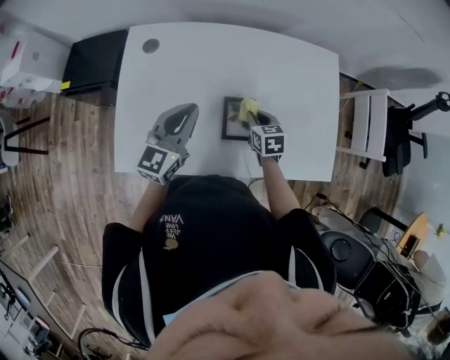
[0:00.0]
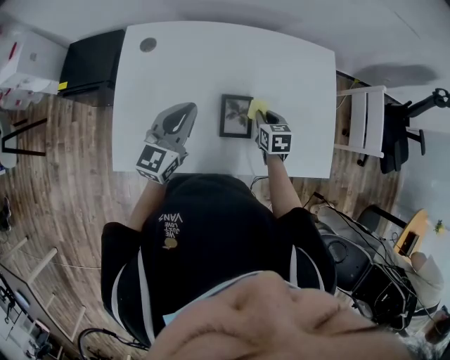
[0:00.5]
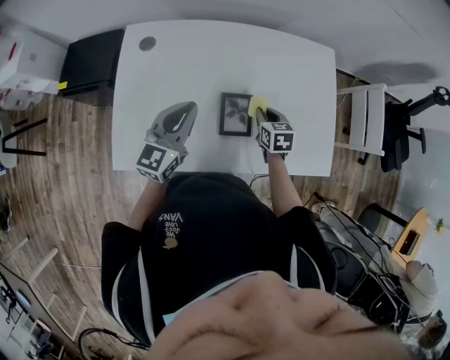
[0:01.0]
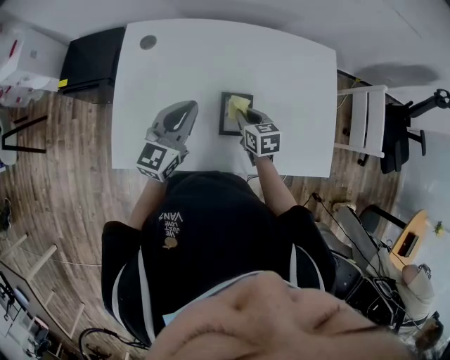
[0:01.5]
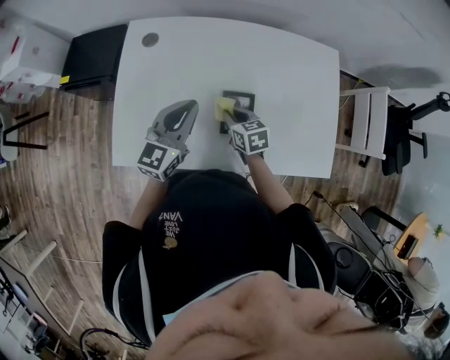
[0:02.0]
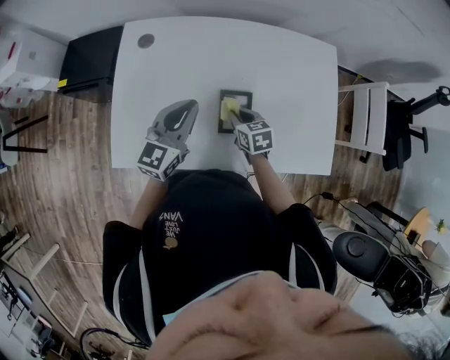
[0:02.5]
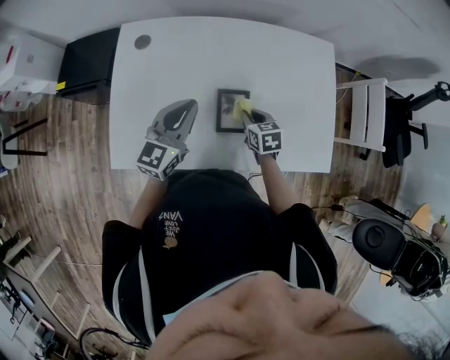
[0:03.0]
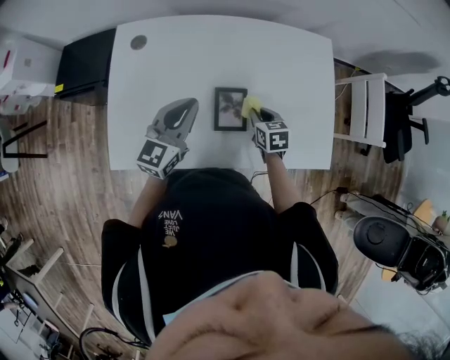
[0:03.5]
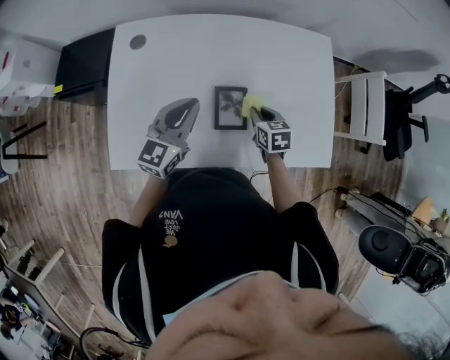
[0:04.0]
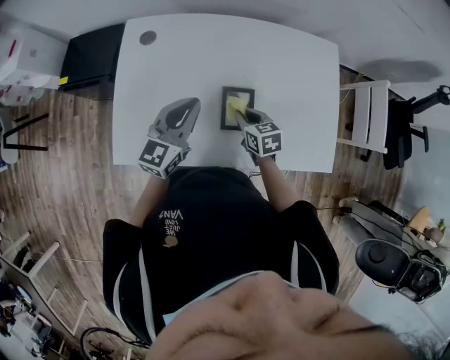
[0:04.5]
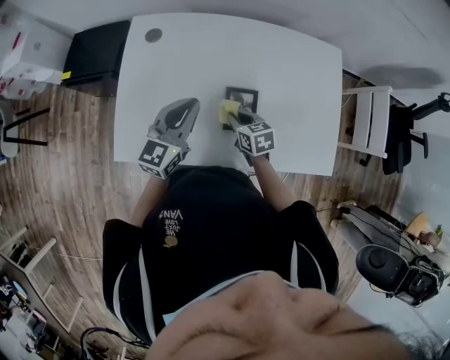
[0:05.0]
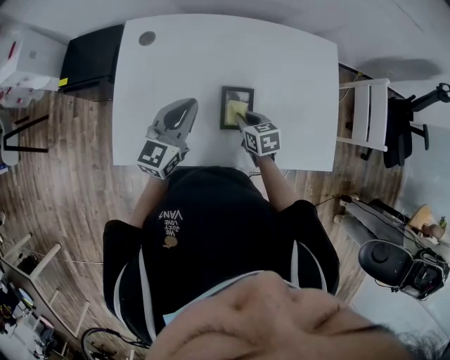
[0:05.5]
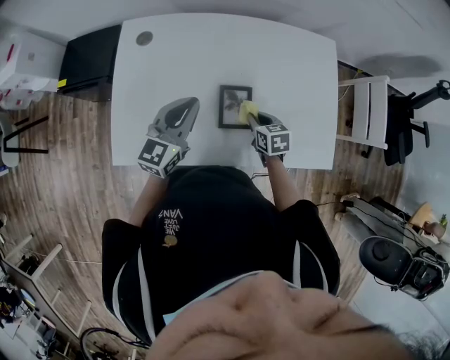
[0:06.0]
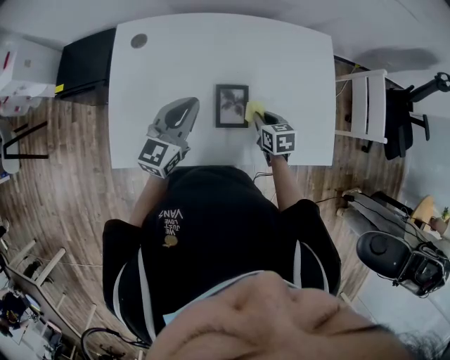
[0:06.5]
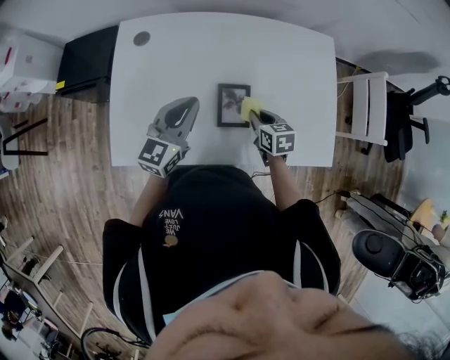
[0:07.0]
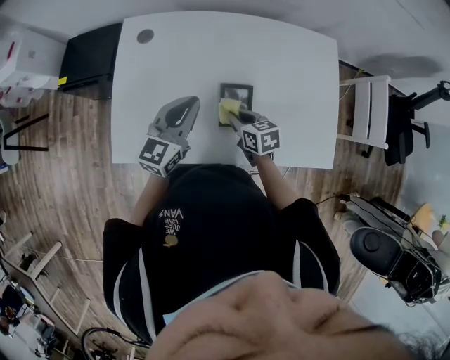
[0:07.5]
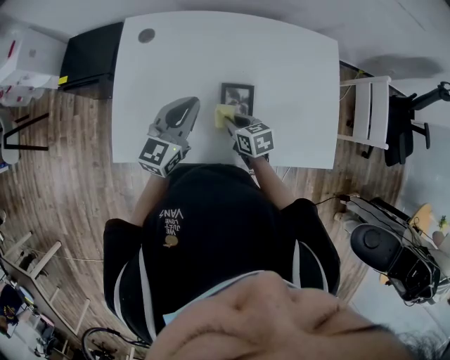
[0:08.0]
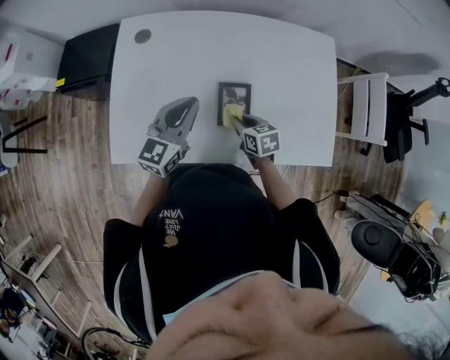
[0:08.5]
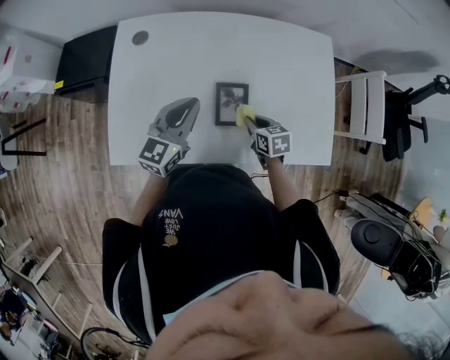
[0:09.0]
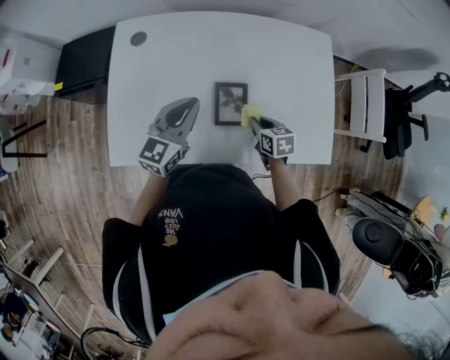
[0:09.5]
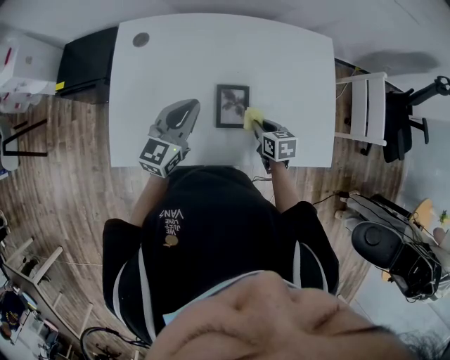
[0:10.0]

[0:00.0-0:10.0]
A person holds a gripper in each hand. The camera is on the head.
0:00.0 to 0:02.0: The right gripper heads to the left, covering approximately 10 cm.
0:02.0 to 0:04.0: The right gripper moves to the right, about 10 cm.
0:04.0 to 0:06.0: The right gripper reaches about 10 cm to the left, then returns.
0:06.0 to 0:08.0: The right gripper is displaced to the left by approximately 10 cm.
0:08.0 to 0:10.0: The right gripper travels to the right by about 10 cm.

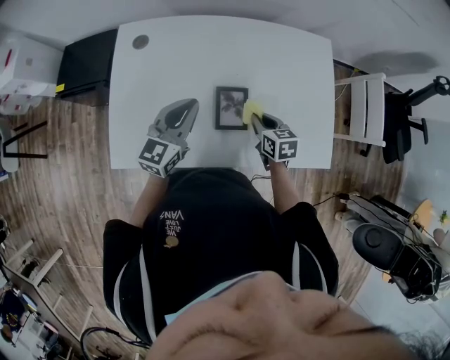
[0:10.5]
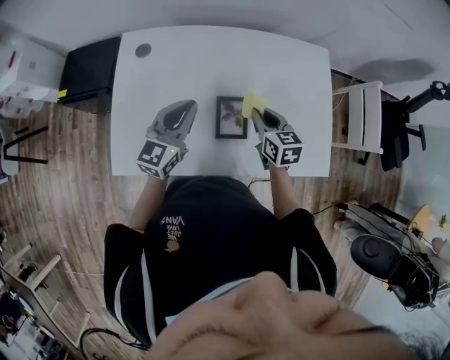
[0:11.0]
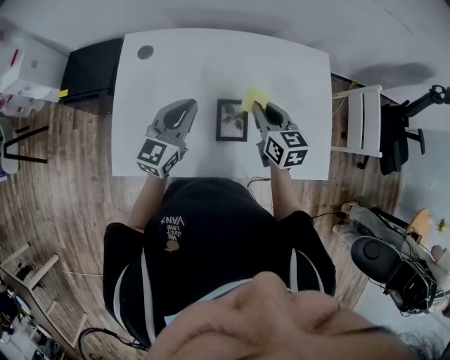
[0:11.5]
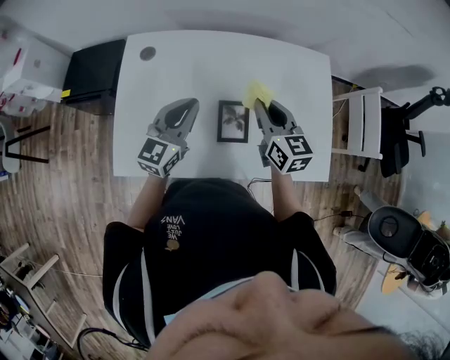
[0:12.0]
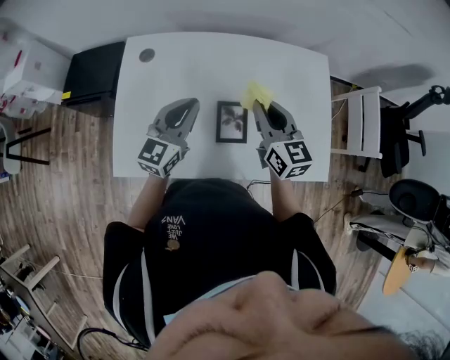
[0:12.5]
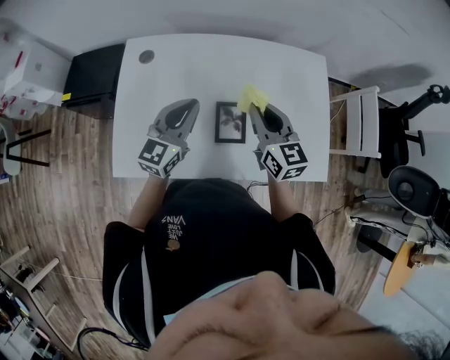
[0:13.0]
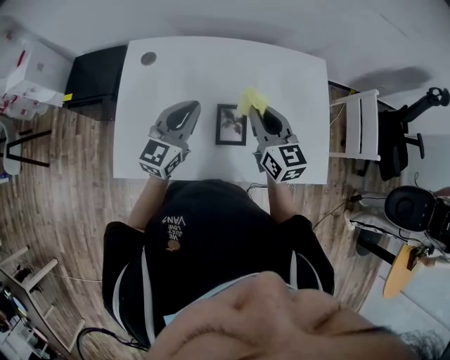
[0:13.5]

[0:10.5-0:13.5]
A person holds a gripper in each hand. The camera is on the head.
0:10.5 to 0:12.0: The right gripper shifts about 15 cm upward, and changes its angle by roughly 30 degrees.
0:12.0 to 0:13.5: The grippers make only small movements.

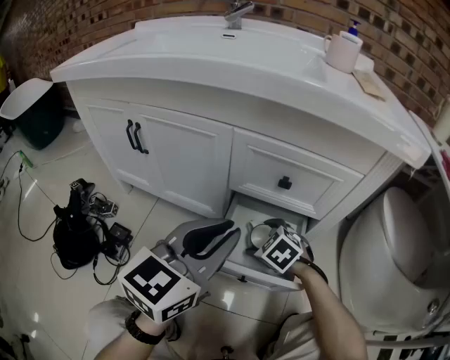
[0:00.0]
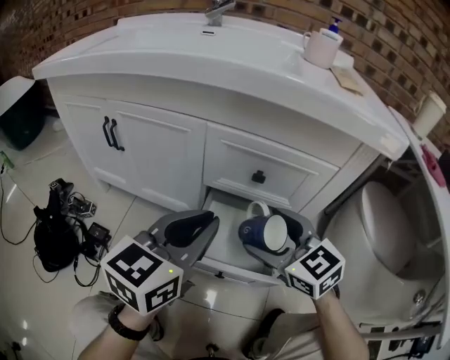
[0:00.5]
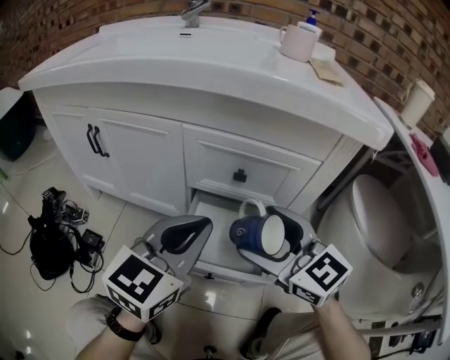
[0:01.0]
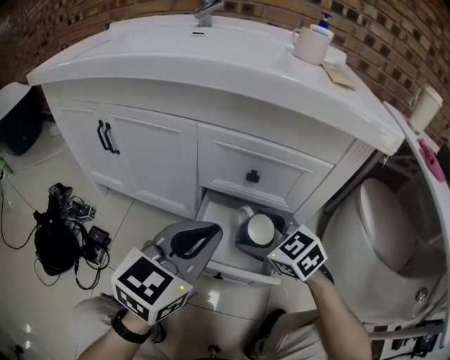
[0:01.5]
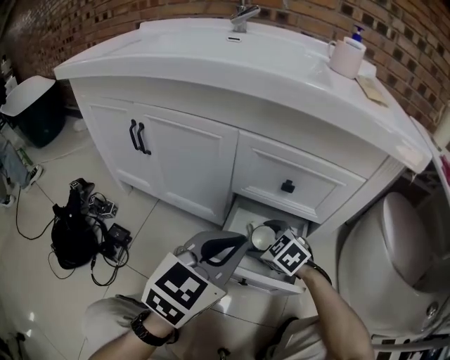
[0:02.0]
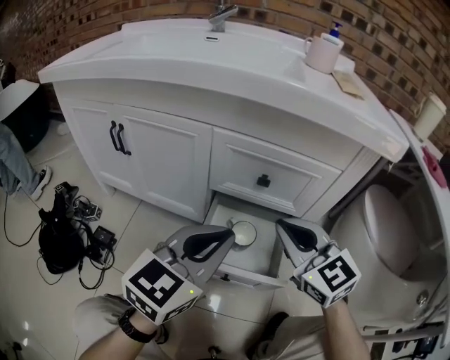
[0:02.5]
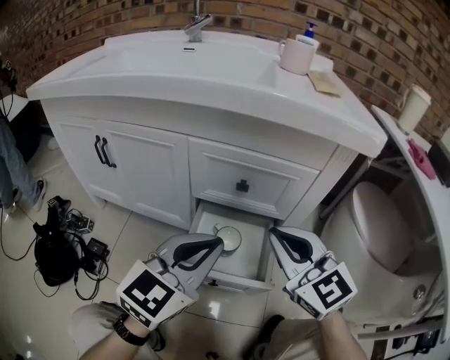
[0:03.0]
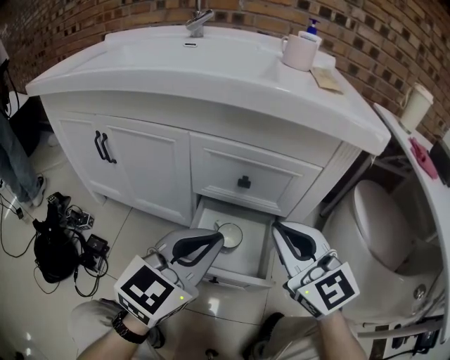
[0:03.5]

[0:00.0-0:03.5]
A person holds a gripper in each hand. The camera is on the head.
0:00.0 to 0:02.0: The right gripper moves roughly 20 cm upward and comes back.
0:02.0 to 0:03.5: The right gripper heads upward, covering roughly 25 cm, points its fingers some 50 degrees further upward, and closes its fingers.

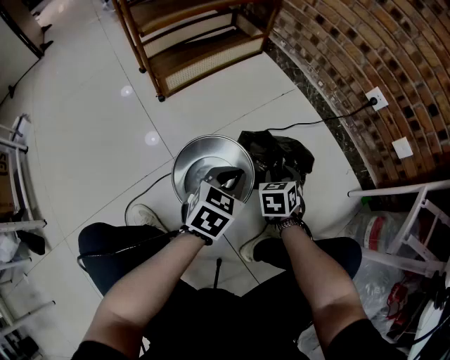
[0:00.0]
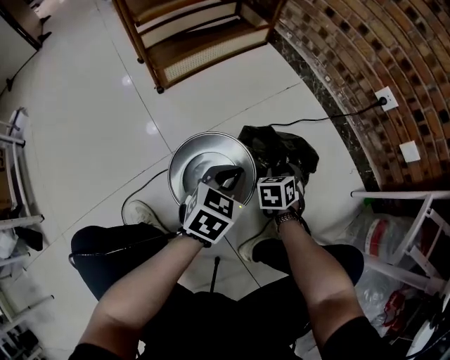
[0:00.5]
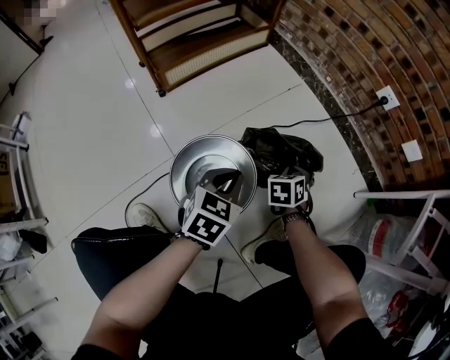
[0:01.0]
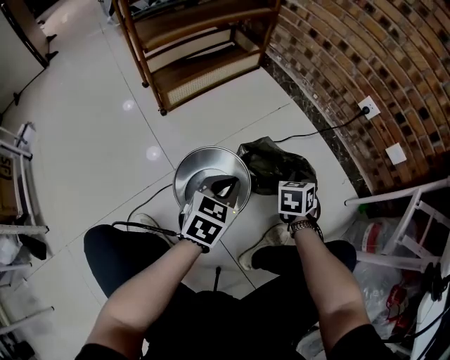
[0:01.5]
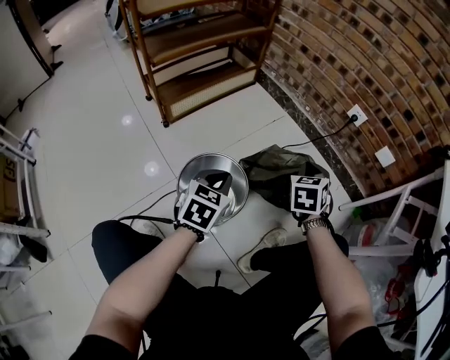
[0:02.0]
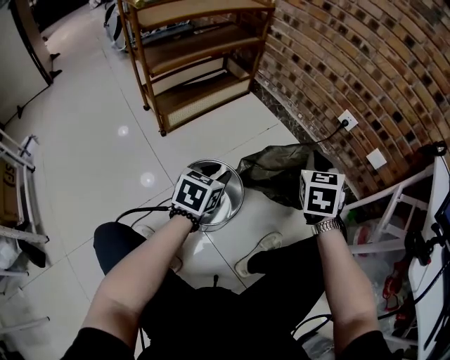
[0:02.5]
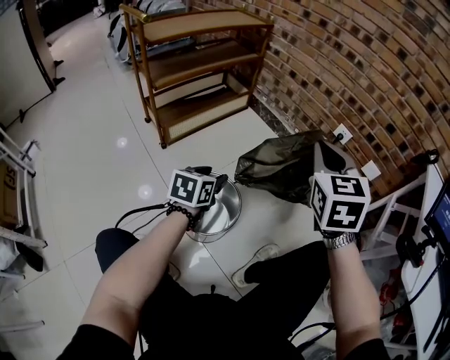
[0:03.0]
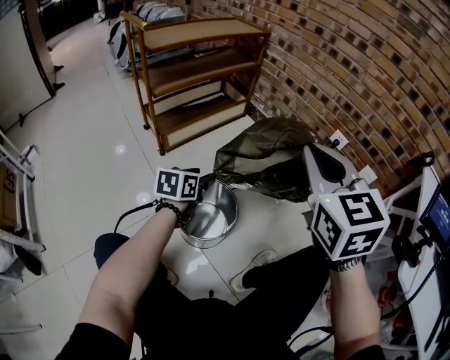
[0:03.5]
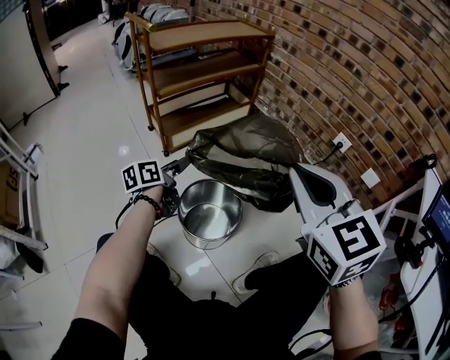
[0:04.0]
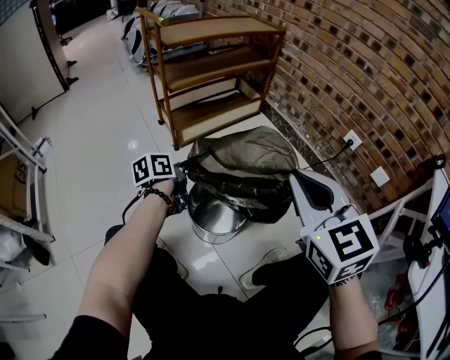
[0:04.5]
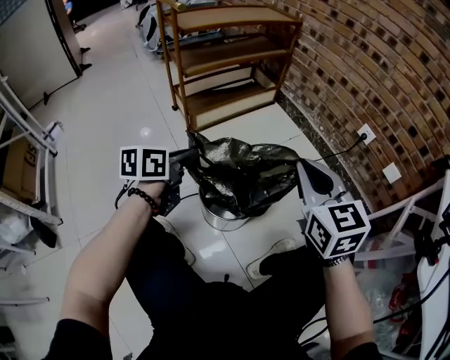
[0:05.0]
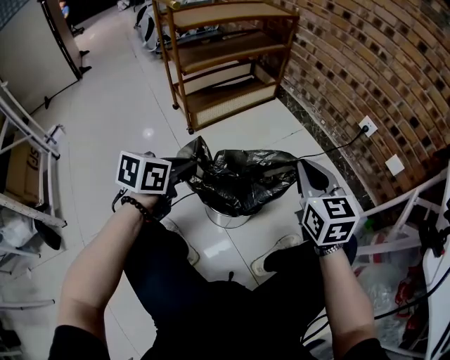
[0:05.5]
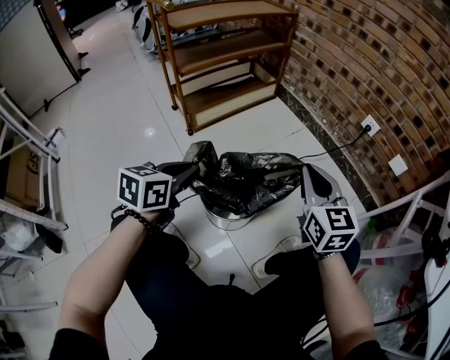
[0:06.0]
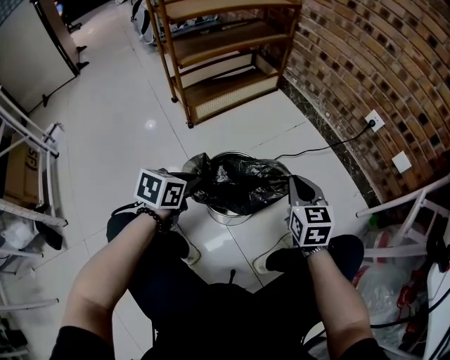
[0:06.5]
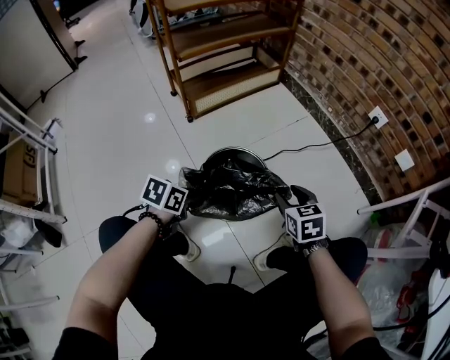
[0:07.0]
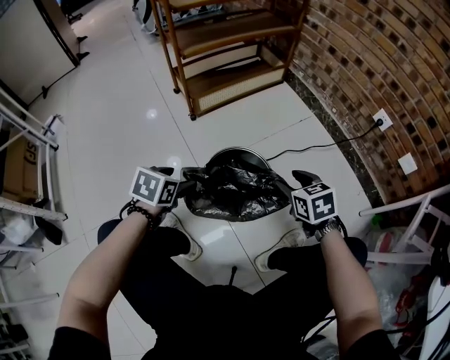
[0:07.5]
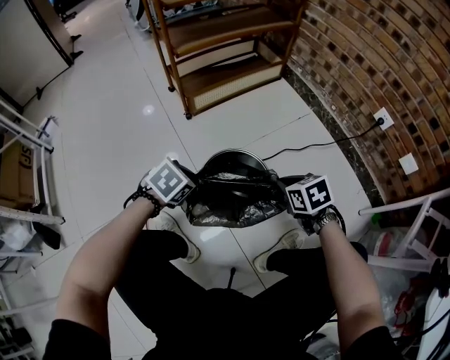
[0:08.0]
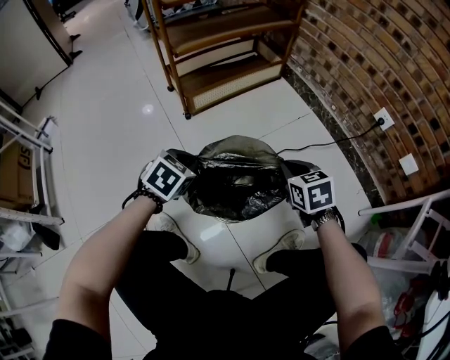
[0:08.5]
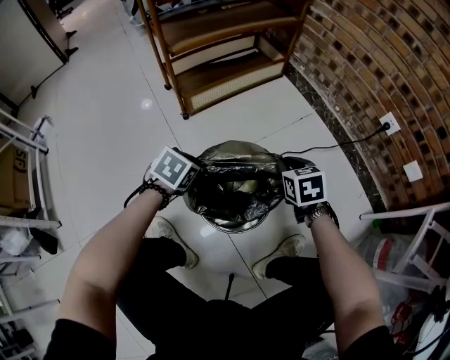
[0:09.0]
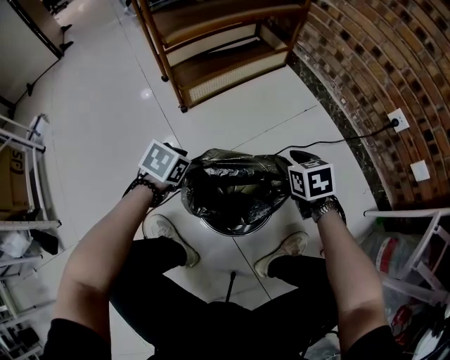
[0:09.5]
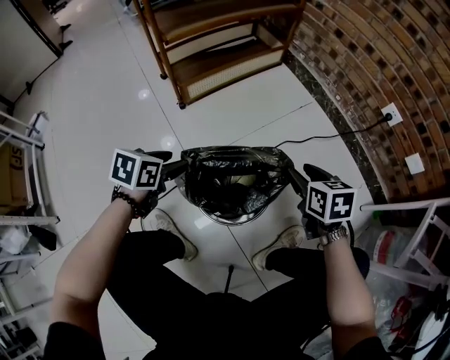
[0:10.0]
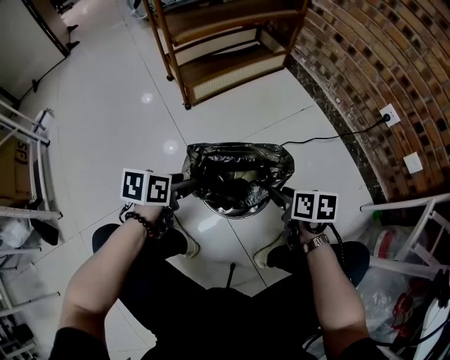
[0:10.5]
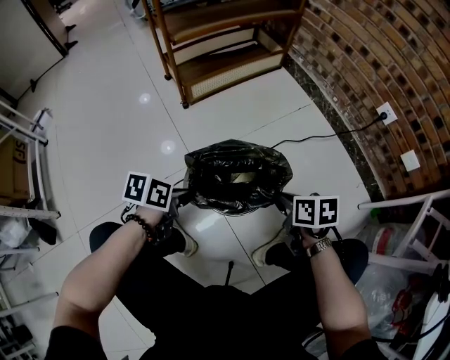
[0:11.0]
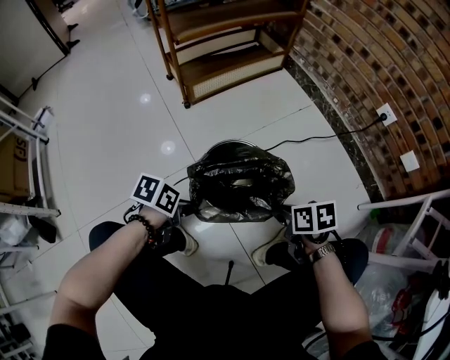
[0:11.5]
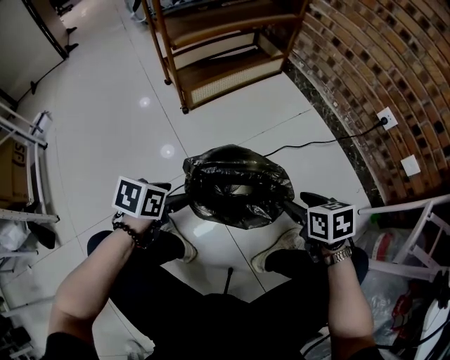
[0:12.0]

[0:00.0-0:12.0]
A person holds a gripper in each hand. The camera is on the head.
0:00.0 to 0:02.0: The left gripper moves roughly 5 cm, while the right gripper moves upward, about 15 cm, and closes up.
0:02.0 to 0:04.0: The right gripper is displaced upward and backward by approximately 30 cm, and swivels approximately 40 degrees, while the left gripper heads to the left, covering some 15 cm, rotates around the line of its fingers by some 50 degrees, counterclockwise from behind, and opens up.
0:04.0 to 0:06.0: The left gripper is displaced backward by roughly 10 cm, turns by approximately 40 degrees, and closes up; the right gripper shifts about 15 cm downward.
0:06.0 to 0:08.0: Both grippers travel together downward, about 20 cm. The left gripper angles its fingers downward, by some 30 degrees, and opens, then closes once more. The right gripper points its fingers roughly 40 degrees further downward, and opens and closes again.
0:08.0 to 0:10.0: The left gripper travels forward by some 5 cm, turns by approximately 30 degrees, and opens up. Meanwhile the right gripper rotates roughly 20 degrees, and opens up.
0:10.0 to 0:12.0: The right gripper closes and opens again, while the left gripper closes, then reopens.
